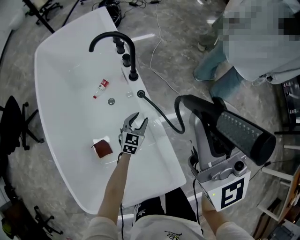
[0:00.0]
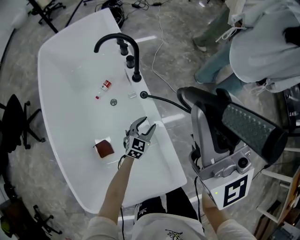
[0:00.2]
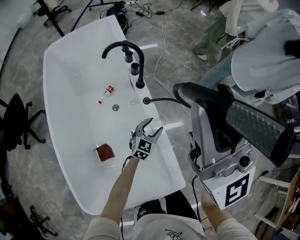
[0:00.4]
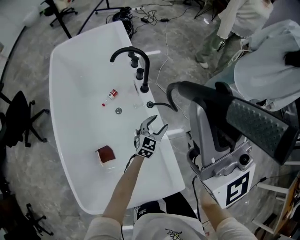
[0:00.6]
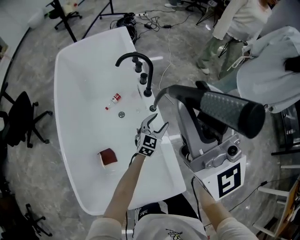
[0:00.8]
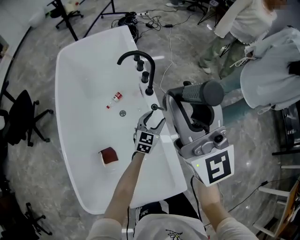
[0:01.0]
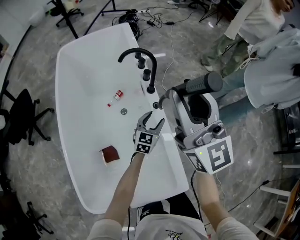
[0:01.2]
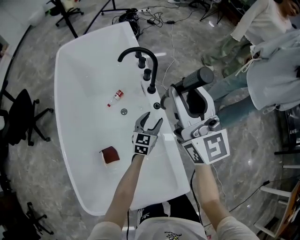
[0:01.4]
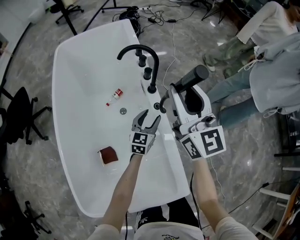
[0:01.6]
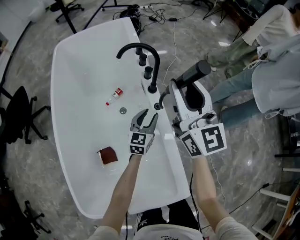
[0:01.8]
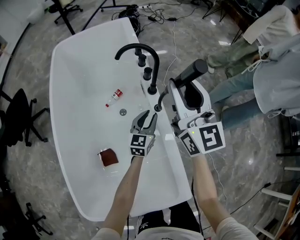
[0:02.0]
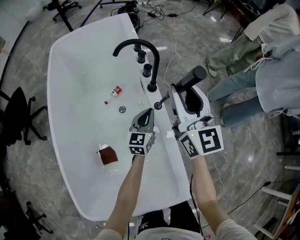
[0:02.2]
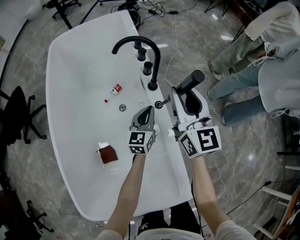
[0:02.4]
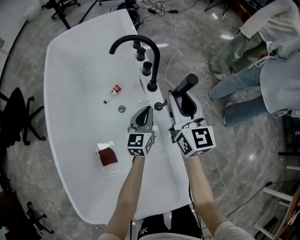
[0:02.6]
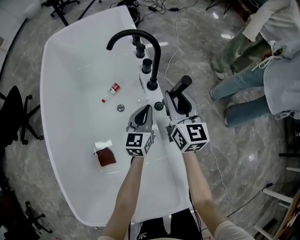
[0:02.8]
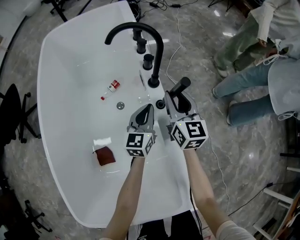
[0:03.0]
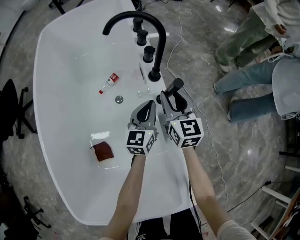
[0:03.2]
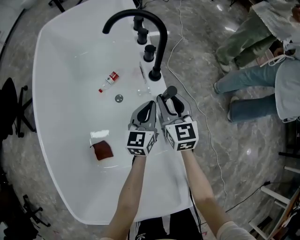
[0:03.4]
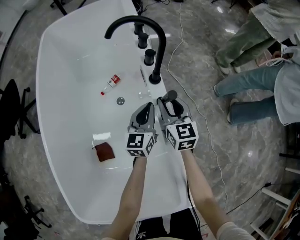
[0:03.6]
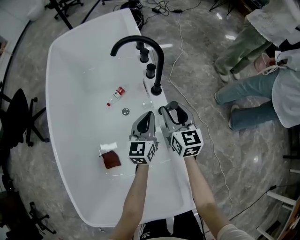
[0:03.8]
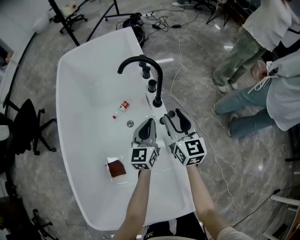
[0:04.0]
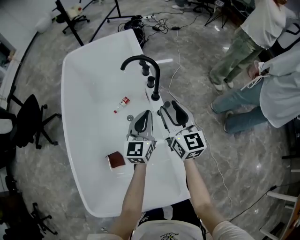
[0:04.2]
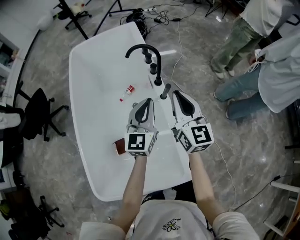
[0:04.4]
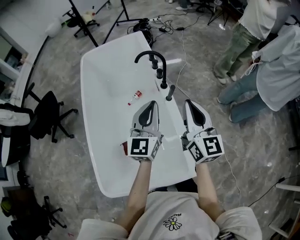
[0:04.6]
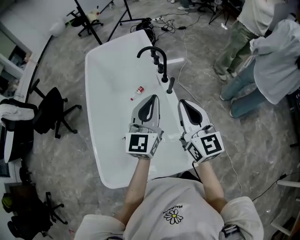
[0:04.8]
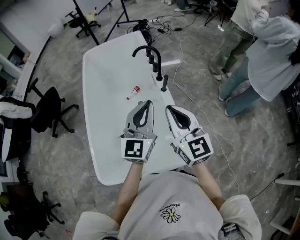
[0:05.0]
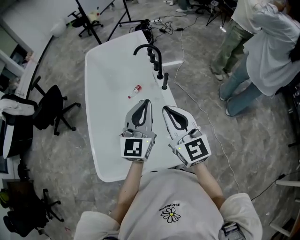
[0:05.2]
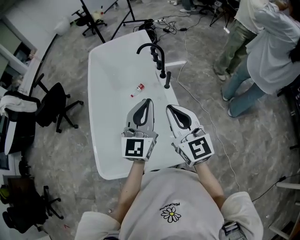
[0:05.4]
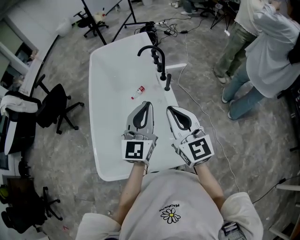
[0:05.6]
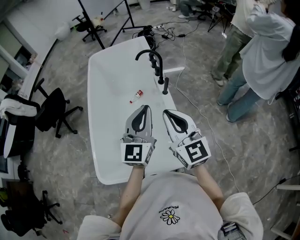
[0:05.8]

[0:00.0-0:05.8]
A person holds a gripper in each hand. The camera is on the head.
0:00.0 to 0:01.4: The left gripper shifts about 10 cm upward. Meanwhile the right gripper heads to the left and forward, covering approximately 10 cm, and travels upward and back again, about 10 cm each way.
0:01.4 to 0:02.8: The left gripper is displaced forward by some 5 cm, and closes. The right gripper goes approximately 30 cm downward, and rotates roughly 20 degrees.
0:02.8 to 0:04.4: Both grippers move upward and backward, about 25 cm. The right gripper closes.
0:04.4 to 0:05.8: The right gripper goes roughly 25 cm backward. The left gripper travels backward and upward by approximately 25 cm.

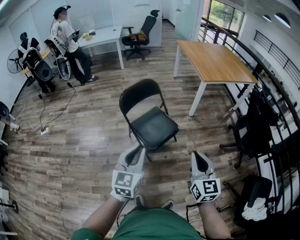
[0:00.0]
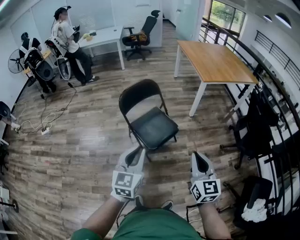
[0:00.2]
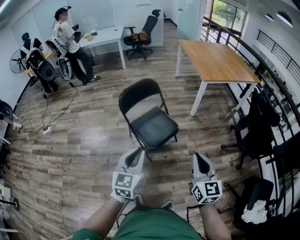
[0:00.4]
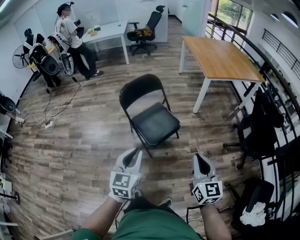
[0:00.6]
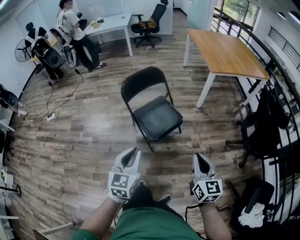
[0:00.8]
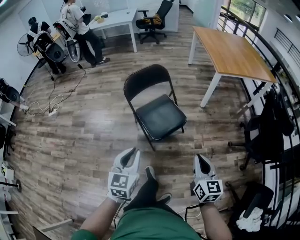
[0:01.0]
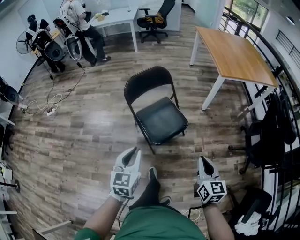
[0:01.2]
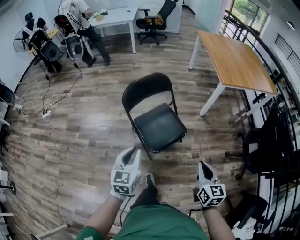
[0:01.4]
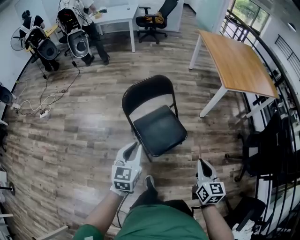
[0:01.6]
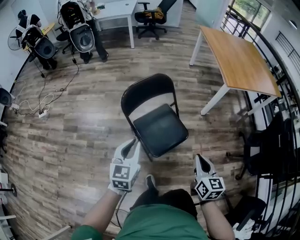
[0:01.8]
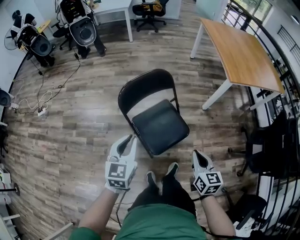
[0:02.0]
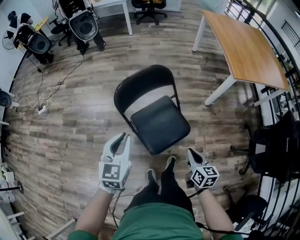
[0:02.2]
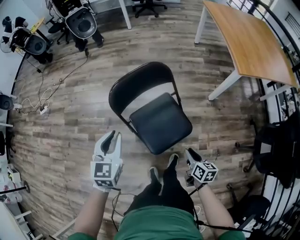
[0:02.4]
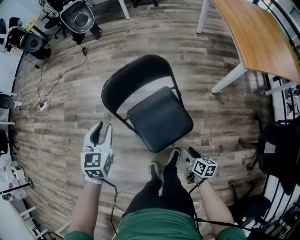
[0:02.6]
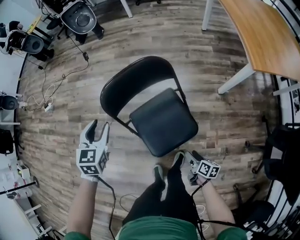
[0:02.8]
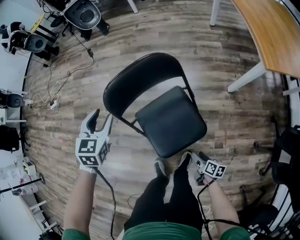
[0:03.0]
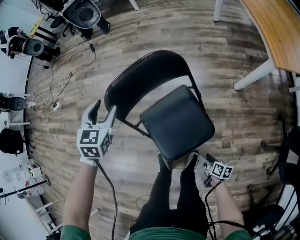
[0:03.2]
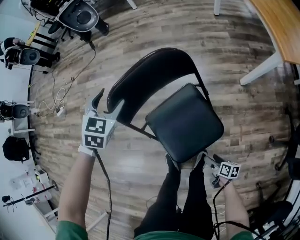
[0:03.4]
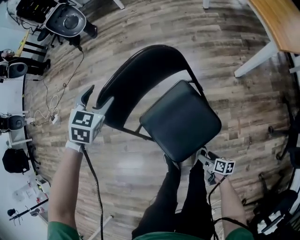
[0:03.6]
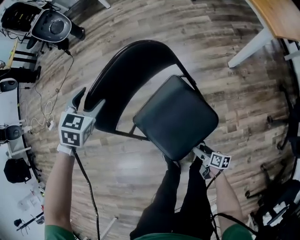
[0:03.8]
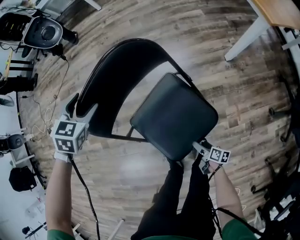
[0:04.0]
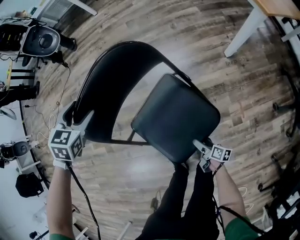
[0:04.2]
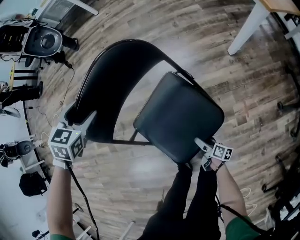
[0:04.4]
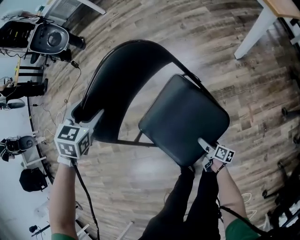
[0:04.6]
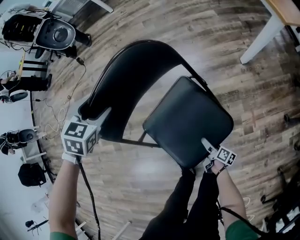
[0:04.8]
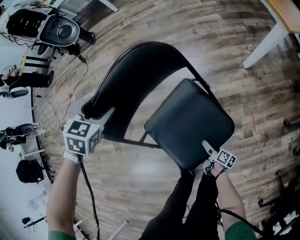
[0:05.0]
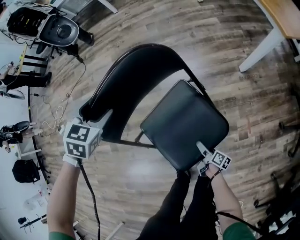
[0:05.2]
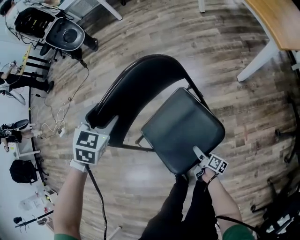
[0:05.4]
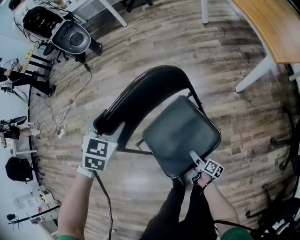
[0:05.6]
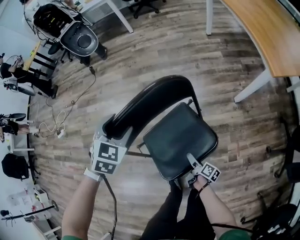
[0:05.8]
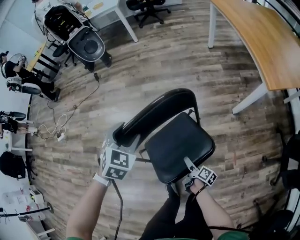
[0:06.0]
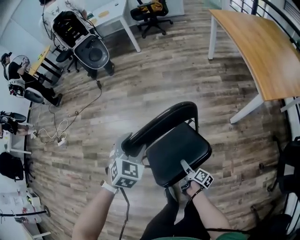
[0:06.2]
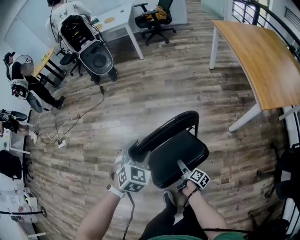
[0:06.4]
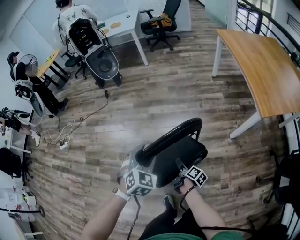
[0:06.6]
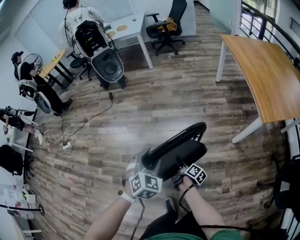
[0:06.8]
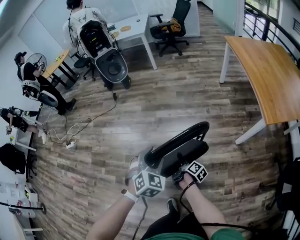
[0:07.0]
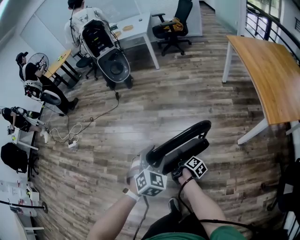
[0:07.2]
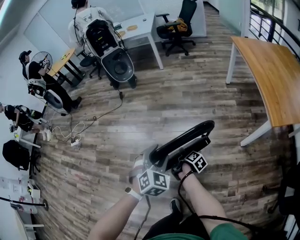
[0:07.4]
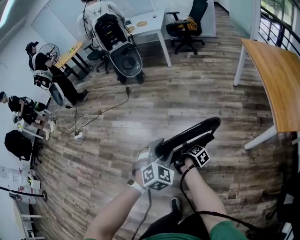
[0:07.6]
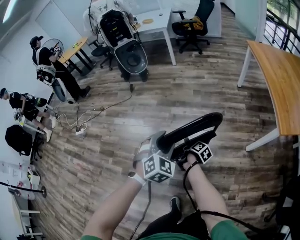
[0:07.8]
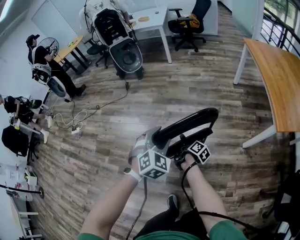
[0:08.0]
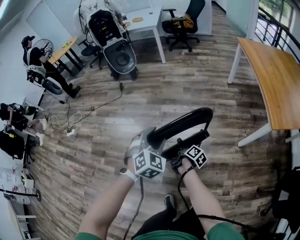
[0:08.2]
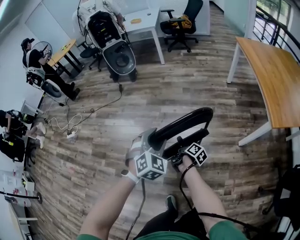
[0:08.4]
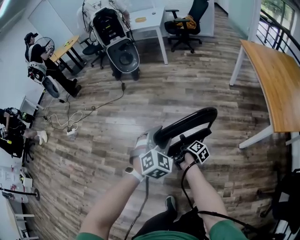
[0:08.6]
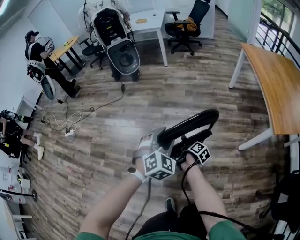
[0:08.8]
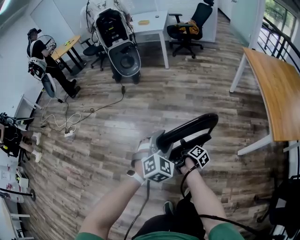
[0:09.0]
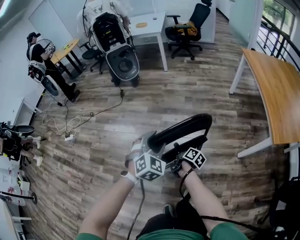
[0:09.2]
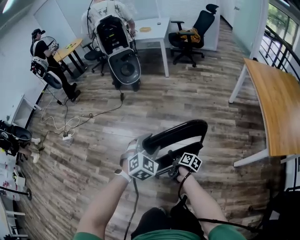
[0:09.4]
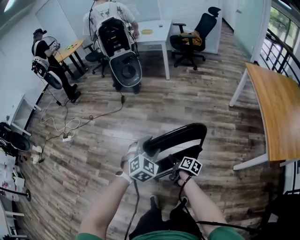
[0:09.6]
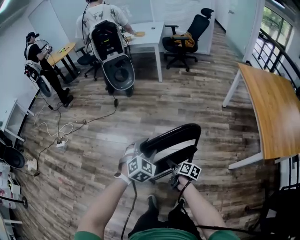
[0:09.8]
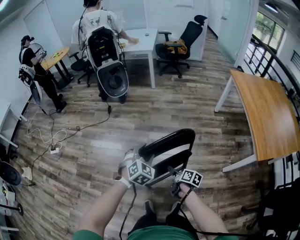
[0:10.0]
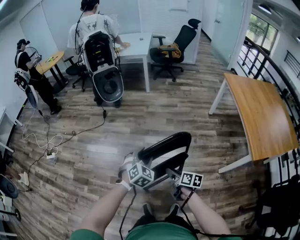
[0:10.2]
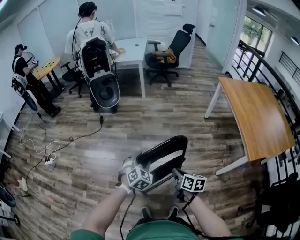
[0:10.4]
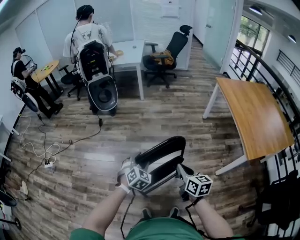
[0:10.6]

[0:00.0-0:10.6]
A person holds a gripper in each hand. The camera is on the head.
0:00.0 to 0:01.6: The two grippers go some 25 cm forward and downward.
0:01.6 to 0:03.0: The right gripper travels downward by some 40 cm, changes its angle by approximately 60 degrees, and opens up; the left gripper goes approximately 35 cm forward, swivels about 30 degrees, and opens its fingers.
0:03.0 to 0:04.6: The right gripper travels downward by about 20 cm, swivels about 20 degrees, and opens its fingers, while the left gripper travels forward and downward by about 20 cm, turns by some 30 degrees, and opens.
0:04.6 to 0:06.0: The left gripper heads upward and backward, covering approximately 15 cm. Meanwhile the right gripper moves upward and forward, about 25 cm.
0:06.0 to 0:07.6: The left gripper is displaced upward by some 10 cm. Meanwhile the right gripper goes approximately 25 cm forward and upward, and closes.
0:07.6 to 0:09.0: Both grippers move forward, some 5 cm.
0:09.0 to 0:10.6: The left gripper heads forward, covering approximately 10 cm; the right gripper heads upward, covering about 25 cm, rolls counterclockwise, seen from behind, by approximately 60 degrees, and closes.

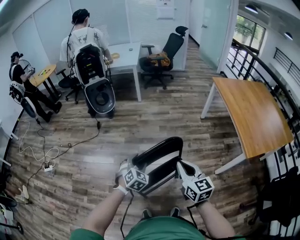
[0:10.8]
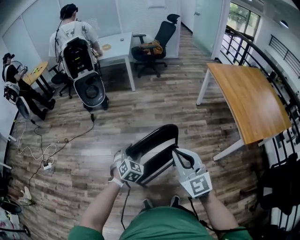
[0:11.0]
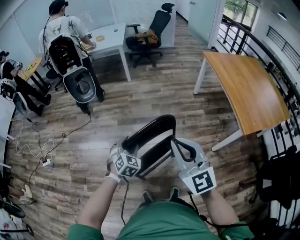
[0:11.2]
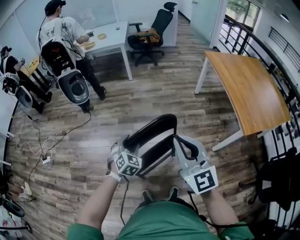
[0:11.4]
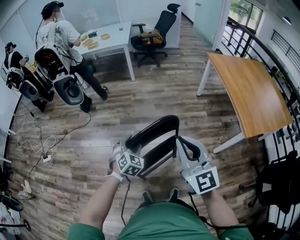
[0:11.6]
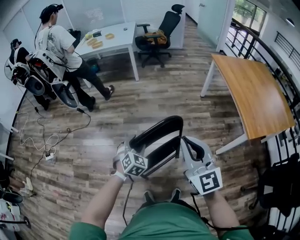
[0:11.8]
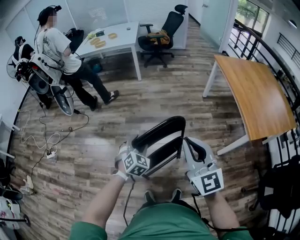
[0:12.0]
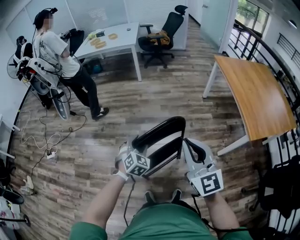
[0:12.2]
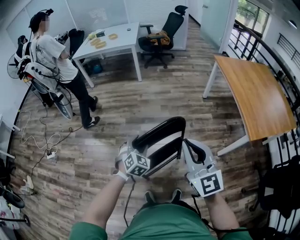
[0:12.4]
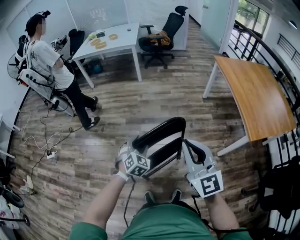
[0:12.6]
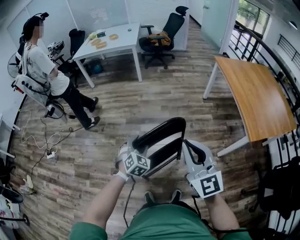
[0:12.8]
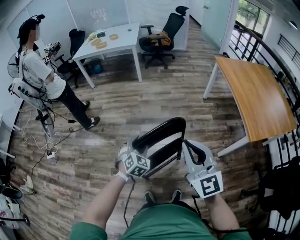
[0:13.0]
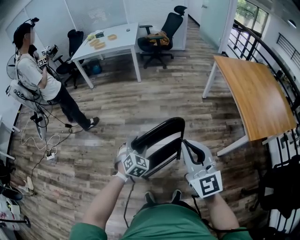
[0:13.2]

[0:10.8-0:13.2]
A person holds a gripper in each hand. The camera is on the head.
0:10.8 to 0:12.0: The right gripper shifts some 10 cm upward, and turns by approximately 30 degrees.
0:12.0 to 0:13.2: Both grippers stay put.

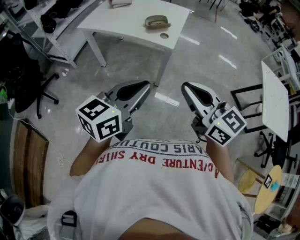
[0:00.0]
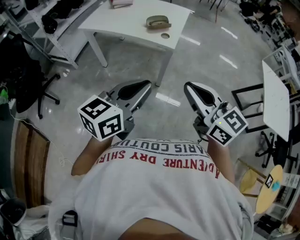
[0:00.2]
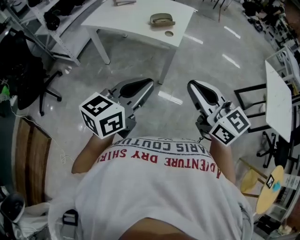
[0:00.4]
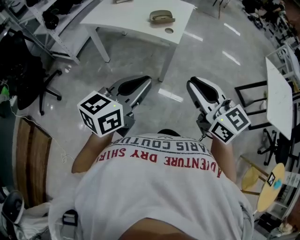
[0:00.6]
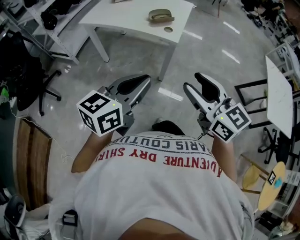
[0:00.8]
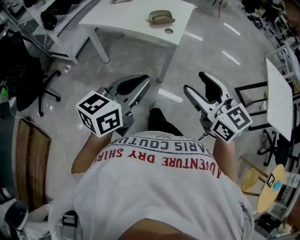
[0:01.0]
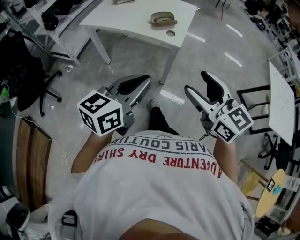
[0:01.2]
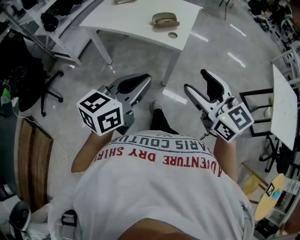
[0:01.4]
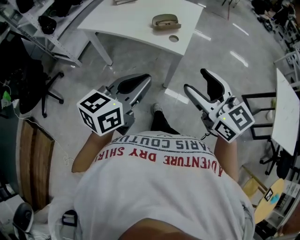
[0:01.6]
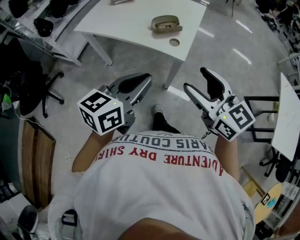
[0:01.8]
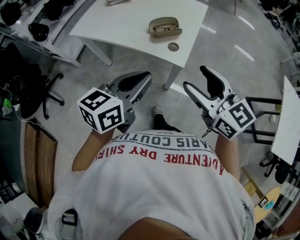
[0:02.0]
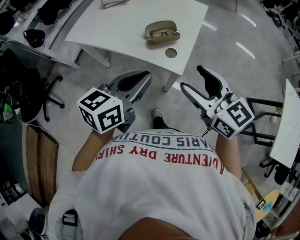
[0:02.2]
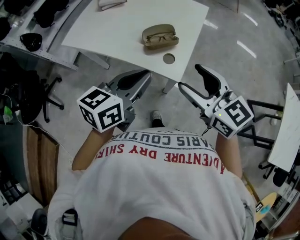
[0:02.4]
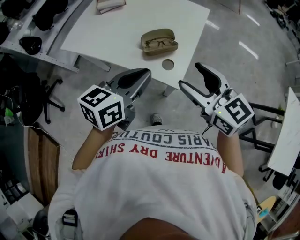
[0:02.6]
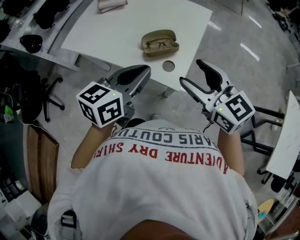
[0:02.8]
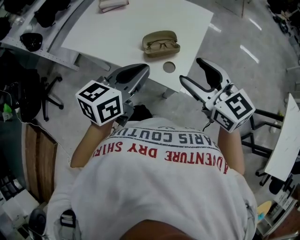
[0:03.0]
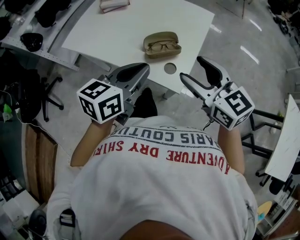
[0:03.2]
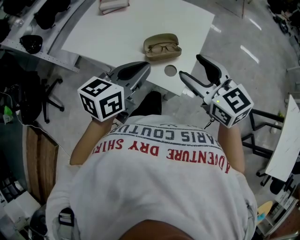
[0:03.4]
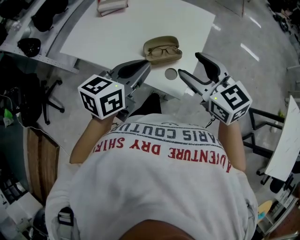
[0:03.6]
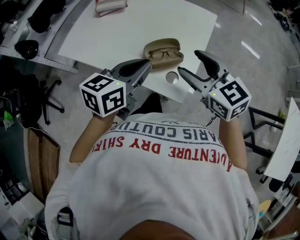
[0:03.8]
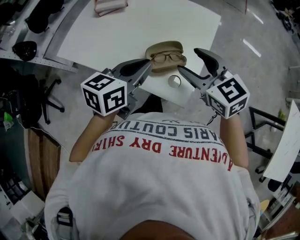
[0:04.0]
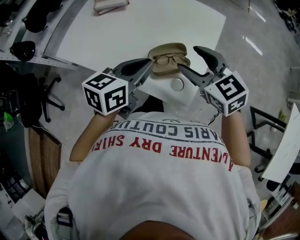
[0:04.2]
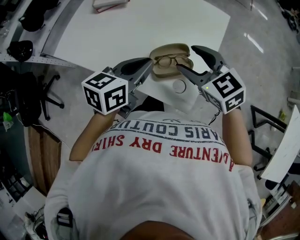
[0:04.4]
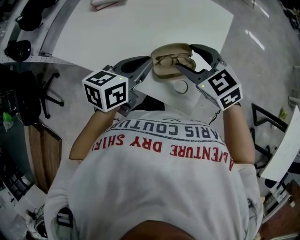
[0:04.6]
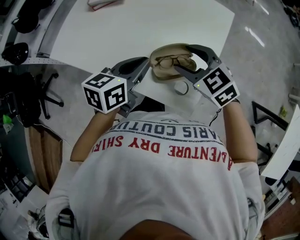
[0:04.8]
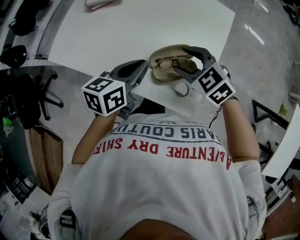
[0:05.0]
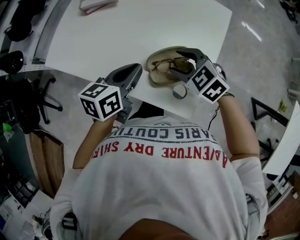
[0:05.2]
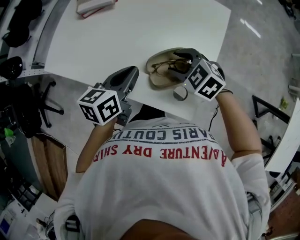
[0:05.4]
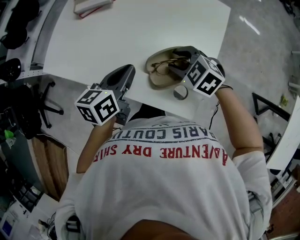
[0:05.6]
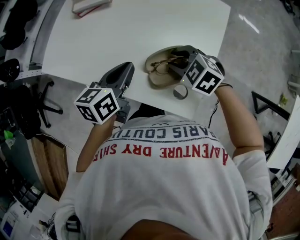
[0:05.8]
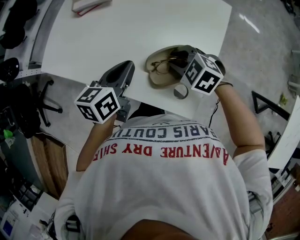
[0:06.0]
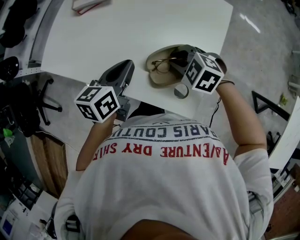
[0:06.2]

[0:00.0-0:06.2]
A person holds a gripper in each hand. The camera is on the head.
0:00.0 to 0:01.6: The grippers both shift forward by some 10 cm. The right gripper opens its fingers.
0:01.6 to 0:03.2: The grippers both shift forward by some 30 cm.
0:03.2 to 0:04.6: Both grippers move forward and downward, about 20 cm. The right gripper turns by approximately 20 degrees.
0:04.6 to 0:06.2: The right gripper is displaced downward by about 10 cm, changes its angle by some 30 degrees, and closes up; the left gripper heads downward, covering some 5 cm.
